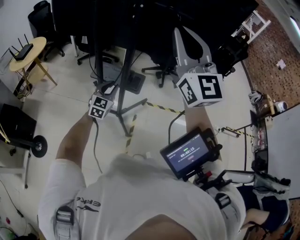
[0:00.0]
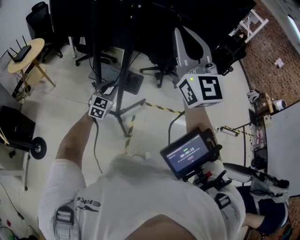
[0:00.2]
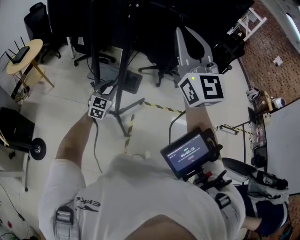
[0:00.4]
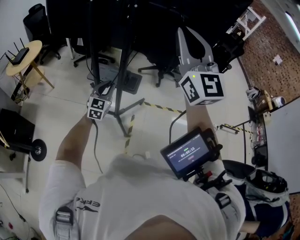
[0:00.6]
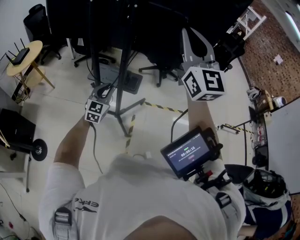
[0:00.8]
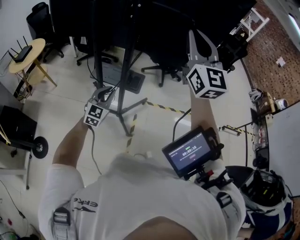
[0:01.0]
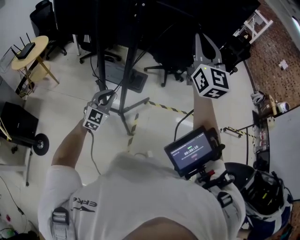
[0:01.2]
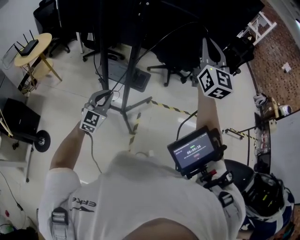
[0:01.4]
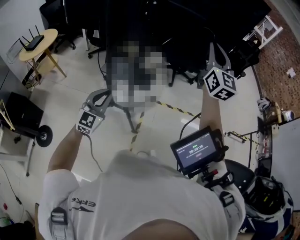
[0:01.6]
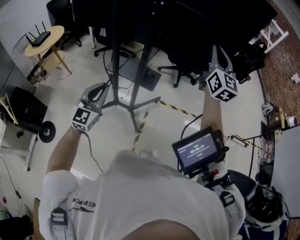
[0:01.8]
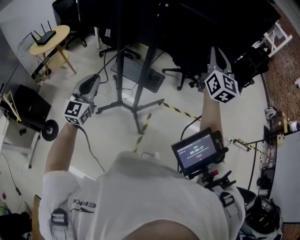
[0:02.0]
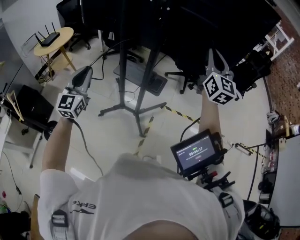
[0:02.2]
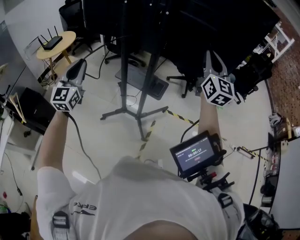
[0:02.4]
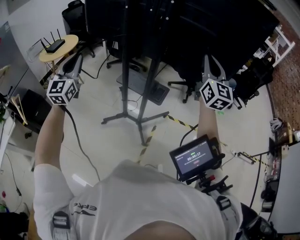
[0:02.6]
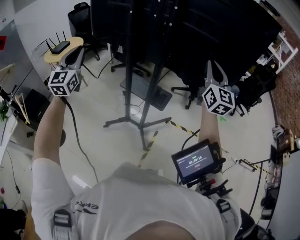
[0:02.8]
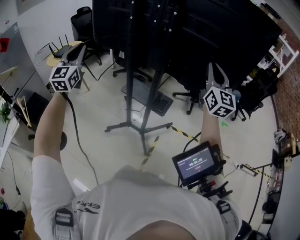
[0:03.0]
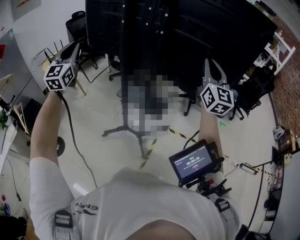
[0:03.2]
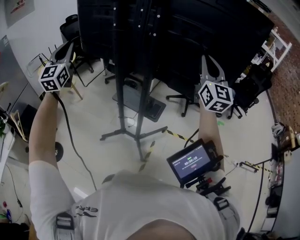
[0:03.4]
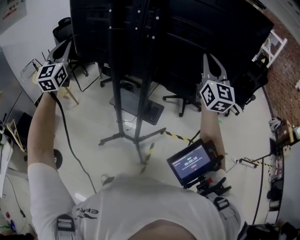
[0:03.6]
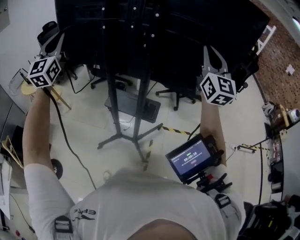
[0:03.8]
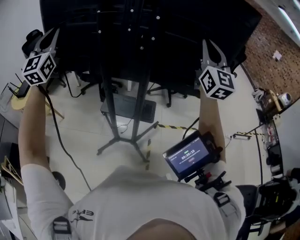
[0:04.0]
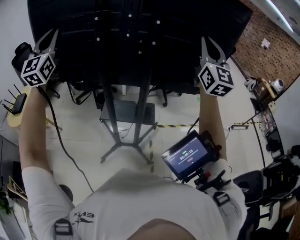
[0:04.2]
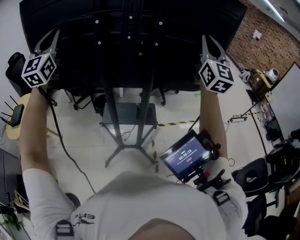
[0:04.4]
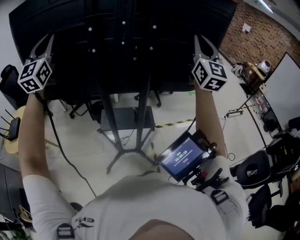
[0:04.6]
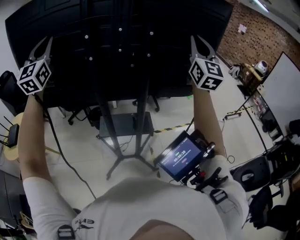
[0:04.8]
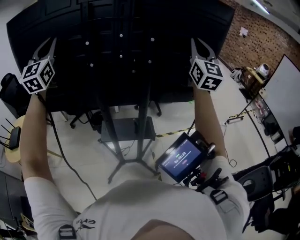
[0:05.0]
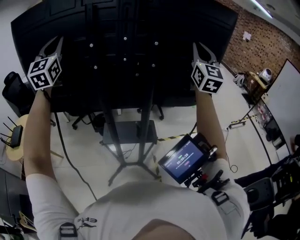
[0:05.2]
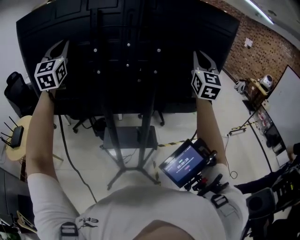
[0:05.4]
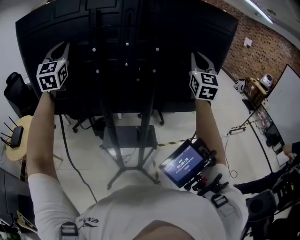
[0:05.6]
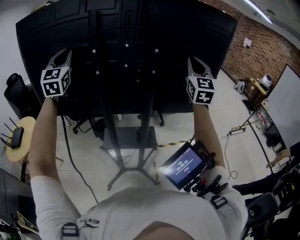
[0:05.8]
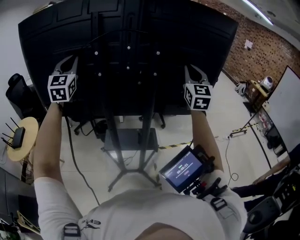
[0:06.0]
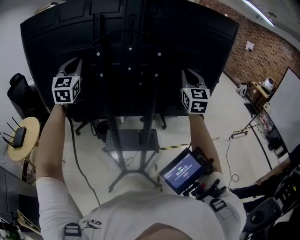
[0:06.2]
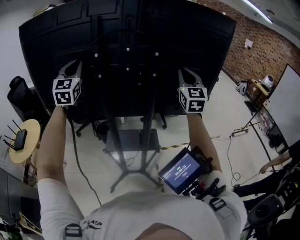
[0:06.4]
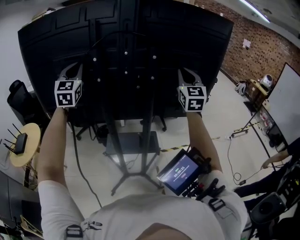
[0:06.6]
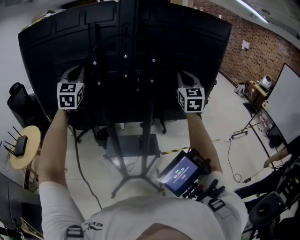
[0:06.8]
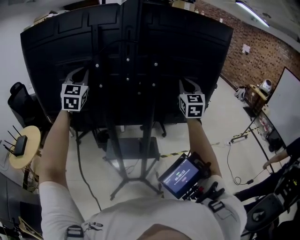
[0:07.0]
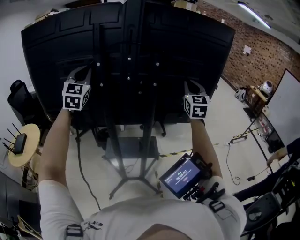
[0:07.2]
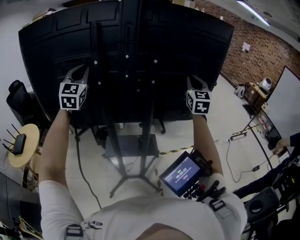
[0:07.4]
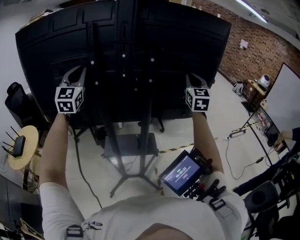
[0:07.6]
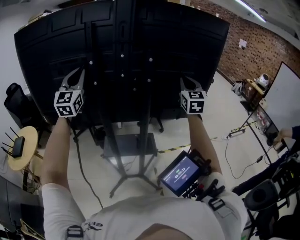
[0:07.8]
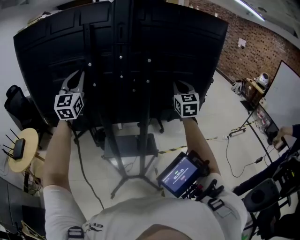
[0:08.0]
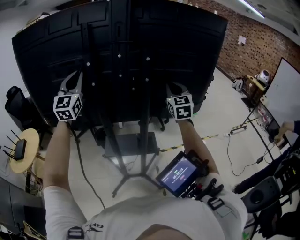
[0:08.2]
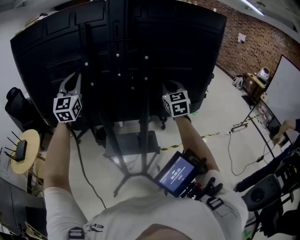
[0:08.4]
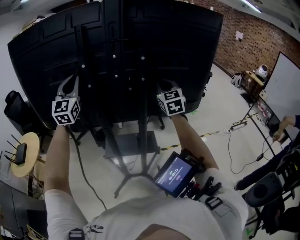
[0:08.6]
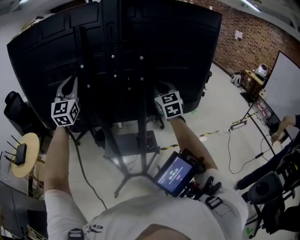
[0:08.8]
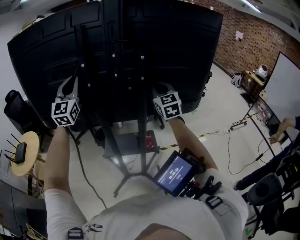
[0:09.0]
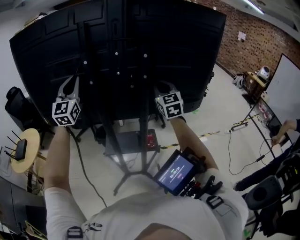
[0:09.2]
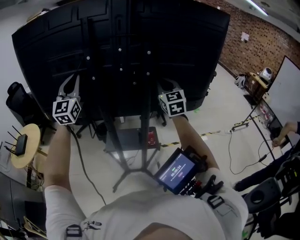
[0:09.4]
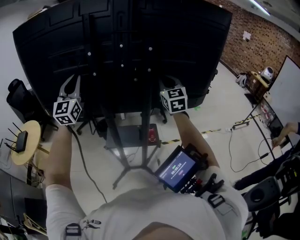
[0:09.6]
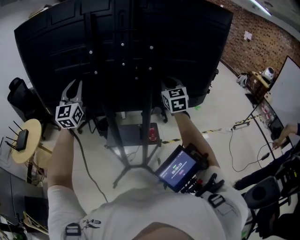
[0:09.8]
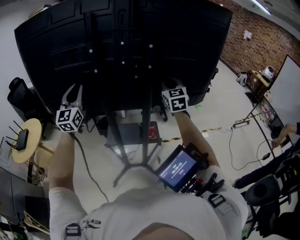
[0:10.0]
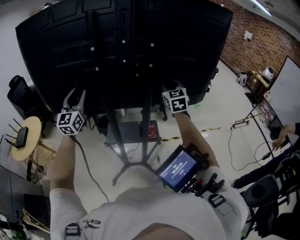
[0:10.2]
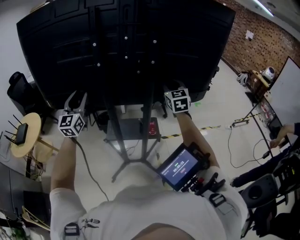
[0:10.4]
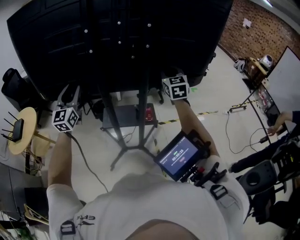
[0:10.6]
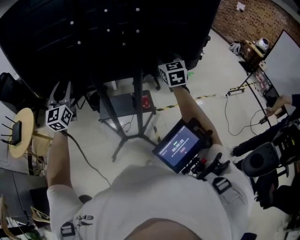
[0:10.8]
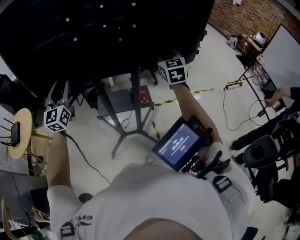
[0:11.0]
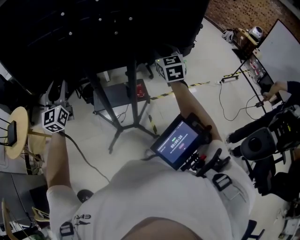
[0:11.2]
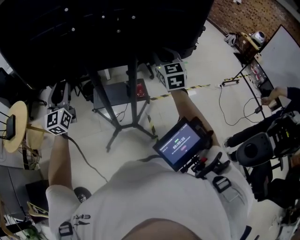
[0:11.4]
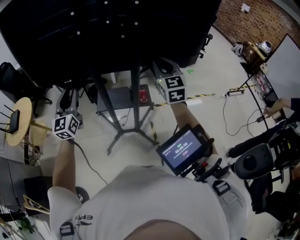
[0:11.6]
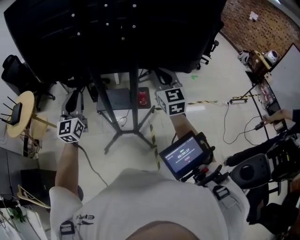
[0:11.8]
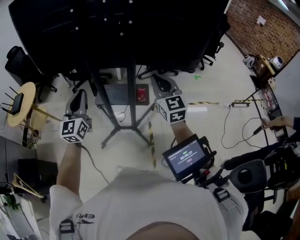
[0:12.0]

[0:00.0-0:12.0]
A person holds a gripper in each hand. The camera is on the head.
0:00.0 to 0:01.6: The left gripper goes approximately 15 cm backward, upward and to the left. Meanwhile the right gripper heads to the right, forward and downward, covering approximately 15 cm, and rotates roughly 20 degrees.
0:01.6 to 0:03.0: The left gripper is displaced upward and to the left by about 35 cm, and swivels some 30 degrees.
0:03.0 to 0:04.4: The right gripper is displaced upward by some 10 cm, and changes its angle by about 30 degrees. The left gripper ends up approximately 30 cm from where it was, and turns by roughly 30 degrees.
0:04.4 to 0:06.0: The right gripper travels forward and downward by roughly 10 cm; the left gripper travels forward by about 10 cm.
0:06.0 to 0:07.6: The right gripper shifts by roughly 5 cm.
0:07.6 to 0:09.0: The right gripper moves to the left and downward, some 15 cm.
0:09.0 to 0:10.4: The right gripper moves downward, approximately 5 cm. The left gripper travels downward by roughly 15 cm, and opens.
0:10.4 to 0:12.0: The right gripper shifts some 20 cm backward, while the left gripper is displaced backward, to the right and downward by approximately 20 cm, and closes its fingers.

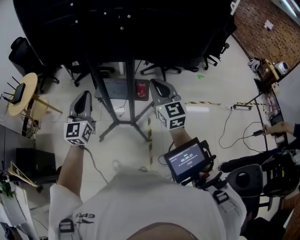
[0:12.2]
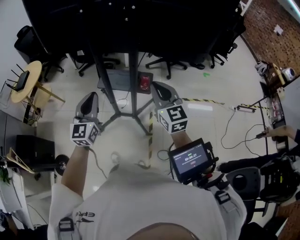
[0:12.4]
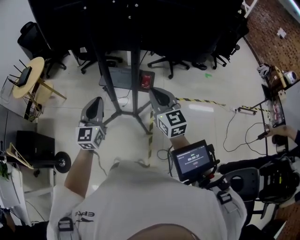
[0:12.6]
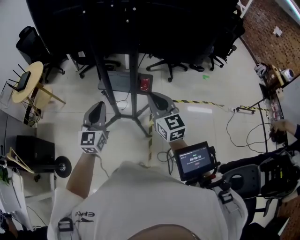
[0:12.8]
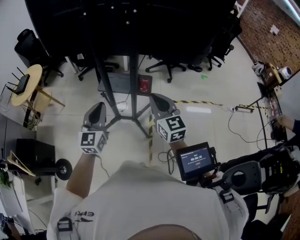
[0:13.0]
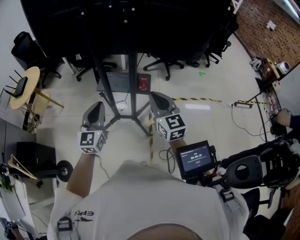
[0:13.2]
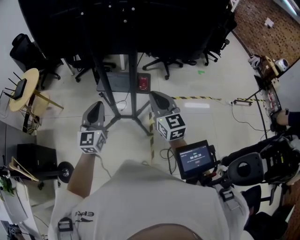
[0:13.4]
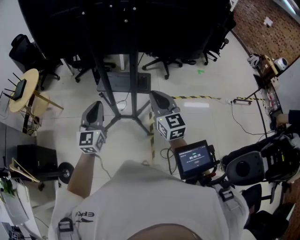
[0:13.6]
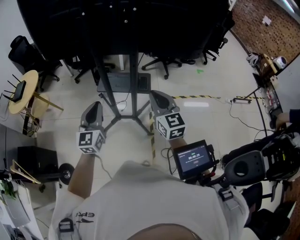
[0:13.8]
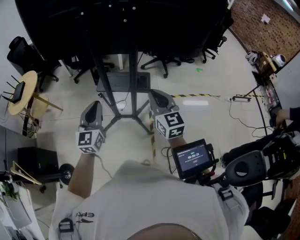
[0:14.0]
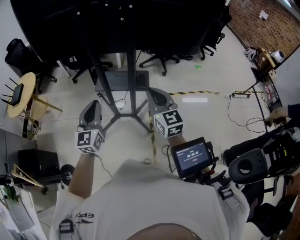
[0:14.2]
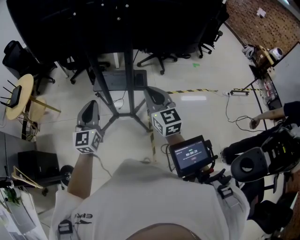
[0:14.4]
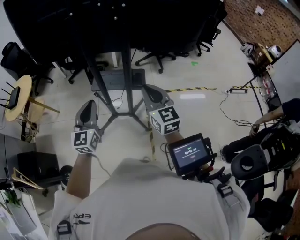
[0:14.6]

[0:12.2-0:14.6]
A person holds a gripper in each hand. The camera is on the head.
0:12.2 to 0:13.4: The grippers both shift backward and downward by roughly 10 cm.
0:13.4 to 0:14.6: There are only small adjustments of the grippers.

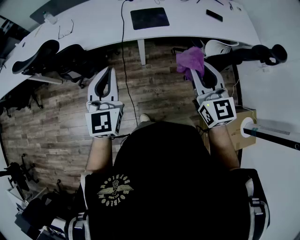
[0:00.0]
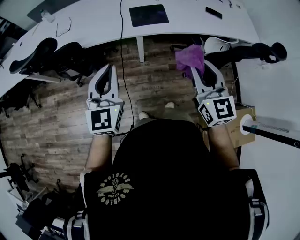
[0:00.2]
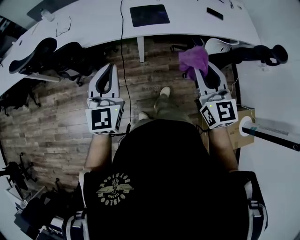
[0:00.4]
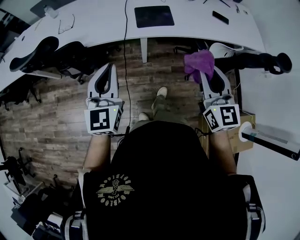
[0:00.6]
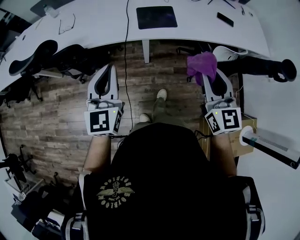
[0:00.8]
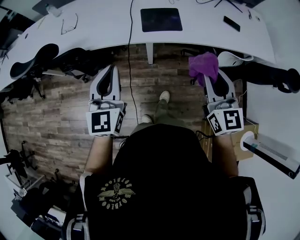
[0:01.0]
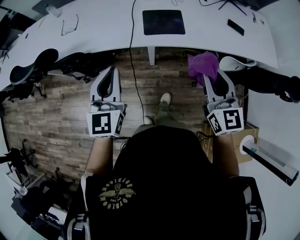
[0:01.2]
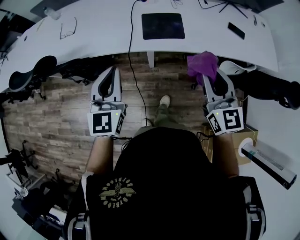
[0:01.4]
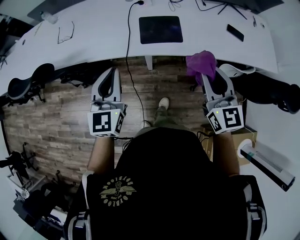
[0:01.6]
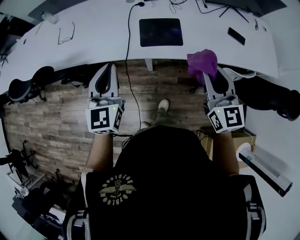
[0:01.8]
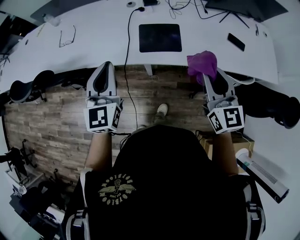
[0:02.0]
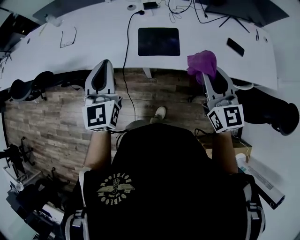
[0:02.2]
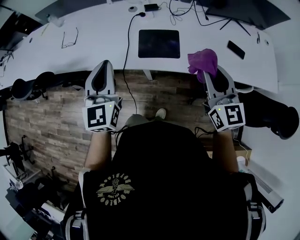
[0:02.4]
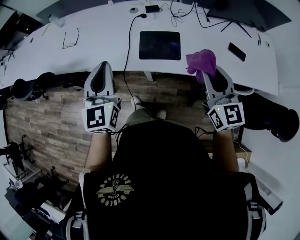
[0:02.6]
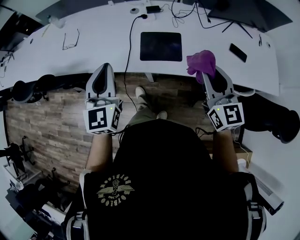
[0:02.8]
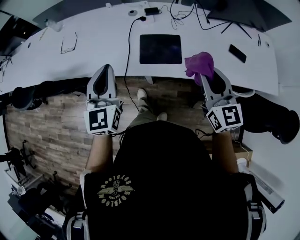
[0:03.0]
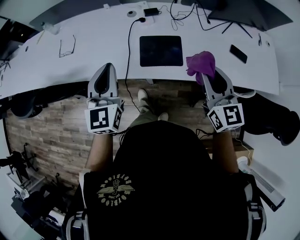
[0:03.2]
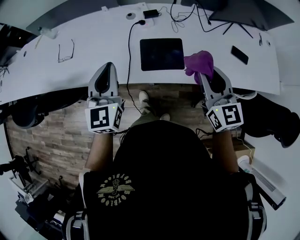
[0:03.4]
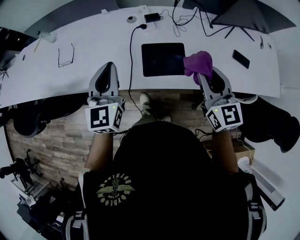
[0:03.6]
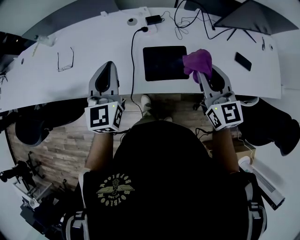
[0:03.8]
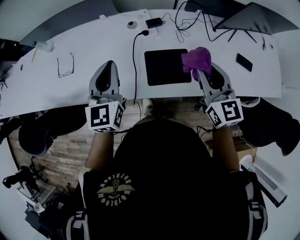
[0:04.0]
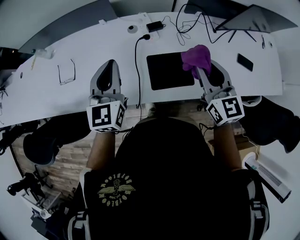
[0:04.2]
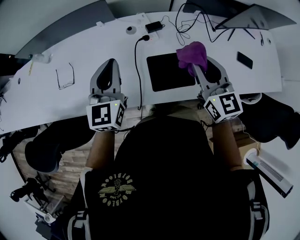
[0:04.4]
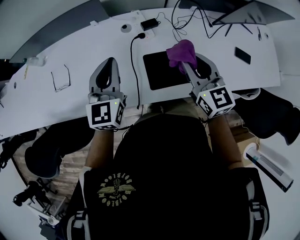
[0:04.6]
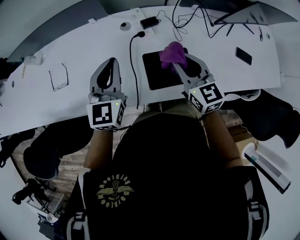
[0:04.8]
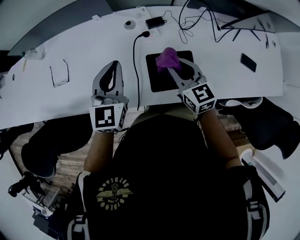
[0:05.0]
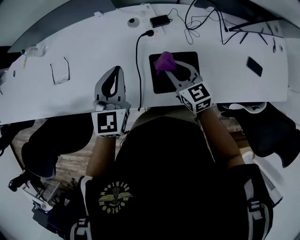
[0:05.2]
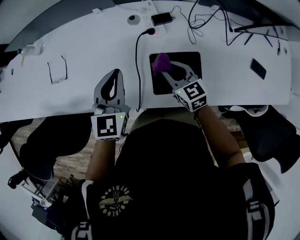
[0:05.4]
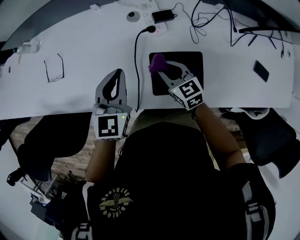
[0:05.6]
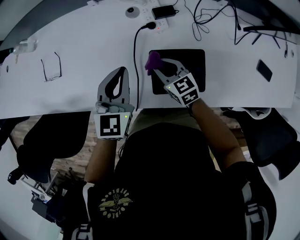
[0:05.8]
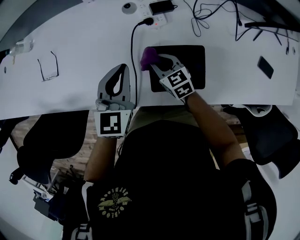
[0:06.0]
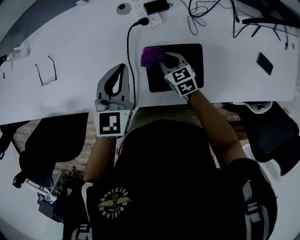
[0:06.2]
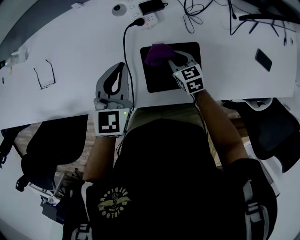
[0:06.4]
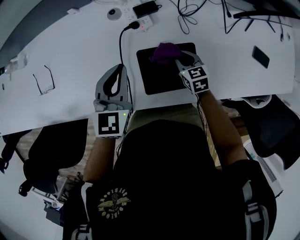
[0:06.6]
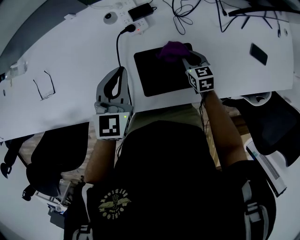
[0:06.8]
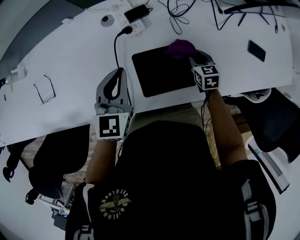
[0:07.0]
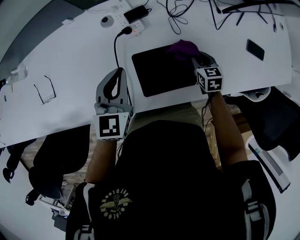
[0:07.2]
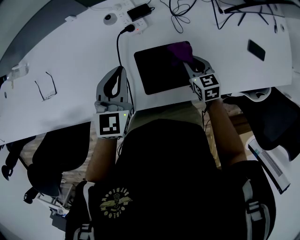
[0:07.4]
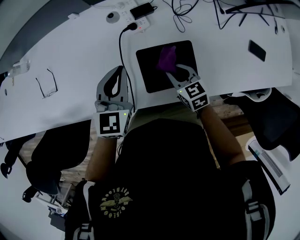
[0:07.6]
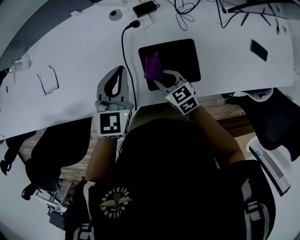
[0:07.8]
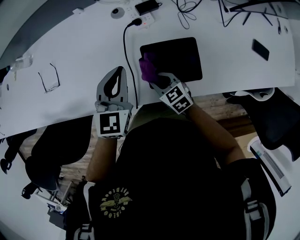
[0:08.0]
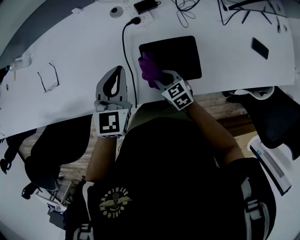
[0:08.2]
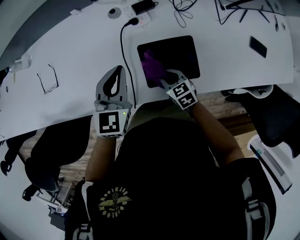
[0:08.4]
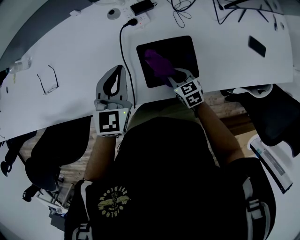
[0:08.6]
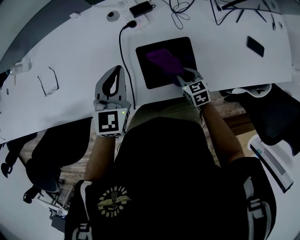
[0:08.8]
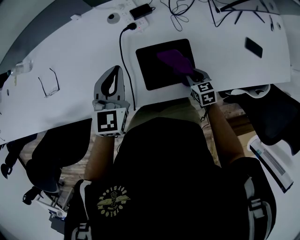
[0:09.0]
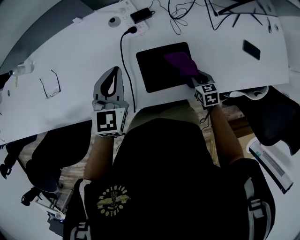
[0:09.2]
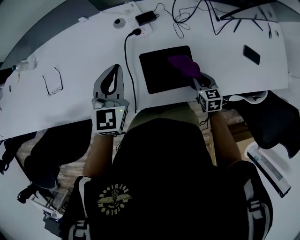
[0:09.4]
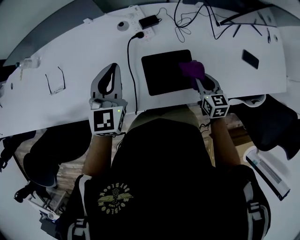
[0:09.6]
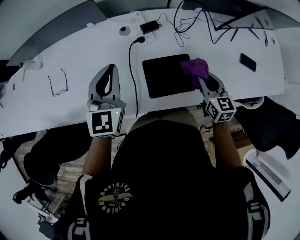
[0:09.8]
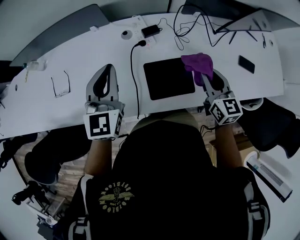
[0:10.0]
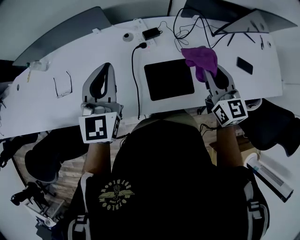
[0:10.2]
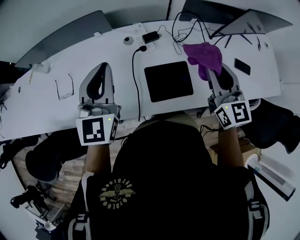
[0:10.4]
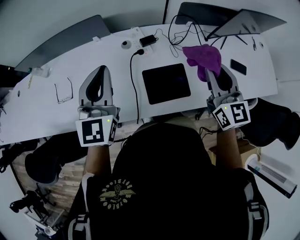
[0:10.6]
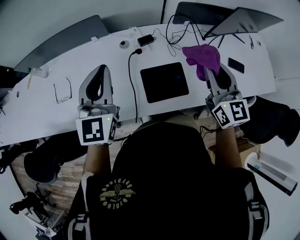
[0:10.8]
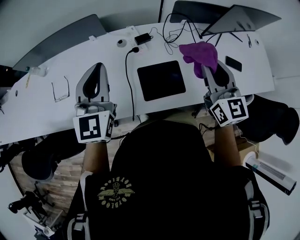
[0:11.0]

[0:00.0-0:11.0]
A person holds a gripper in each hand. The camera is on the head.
0:00.0 to 0:01.6: The two grippers go about 20 cm forward.
0:01.6 to 0:03.2: Both grippers move forward, approximately 15 cm.
0:03.2 to 0:04.8: The right gripper shifts roughly 25 cm forward, to the left and downward. Meanwhile the left gripper is displaced forward by approximately 20 cm.
0:04.8 to 0:06.2: The left gripper heads downward, covering roughly 15 cm. Meanwhile the right gripper goes roughly 30 cm downward, and changes its angle by approximately 30 degrees.
0:06.2 to 0:07.8: The right gripper travels backward by some 10 cm, and travels to the right and back again, approximately 20 cm each way.
0:07.8 to 0:09.4: The right gripper heads to the right, covering about 20 cm, and rotates some 30 degrees.
0:09.4 to 0:11.0: The right gripper is displaced upward by roughly 35 cm, and angles its fingers upward, by approximately 40 degrees, while the left gripper goes approximately 20 cm upward.
